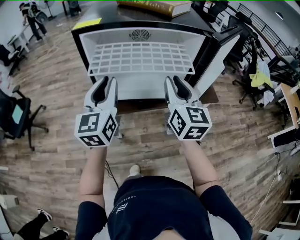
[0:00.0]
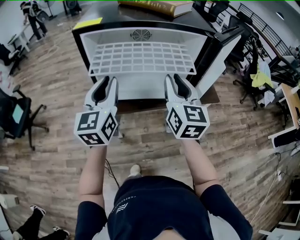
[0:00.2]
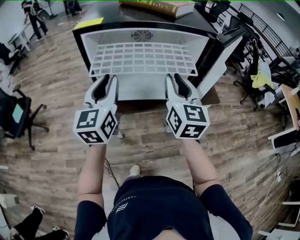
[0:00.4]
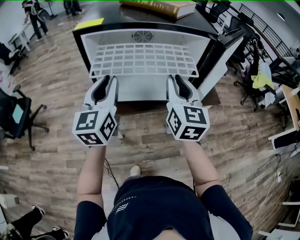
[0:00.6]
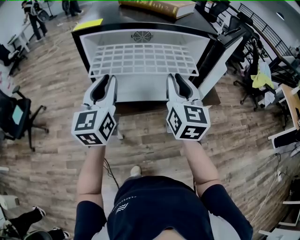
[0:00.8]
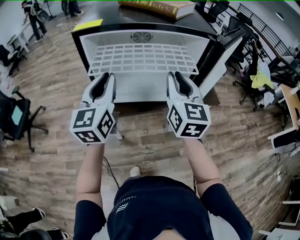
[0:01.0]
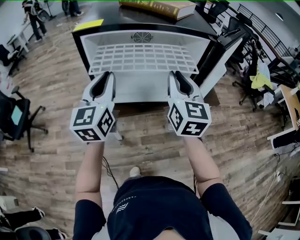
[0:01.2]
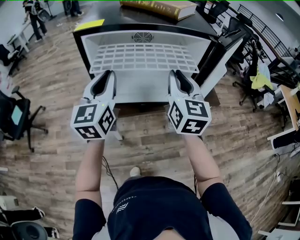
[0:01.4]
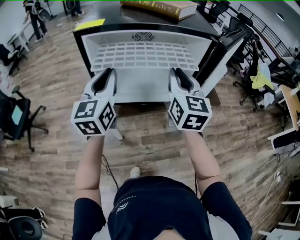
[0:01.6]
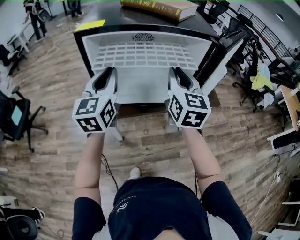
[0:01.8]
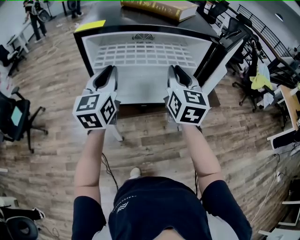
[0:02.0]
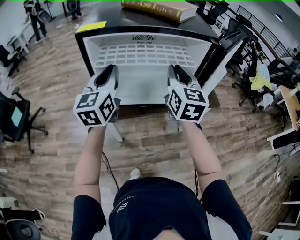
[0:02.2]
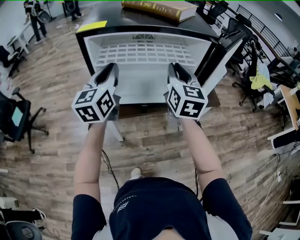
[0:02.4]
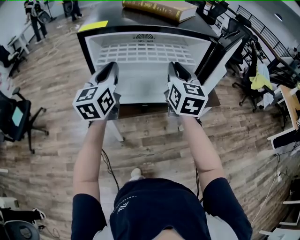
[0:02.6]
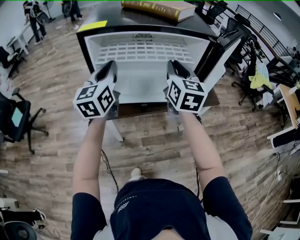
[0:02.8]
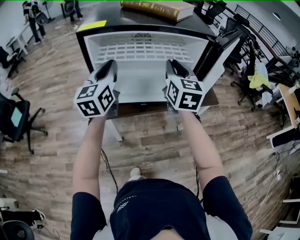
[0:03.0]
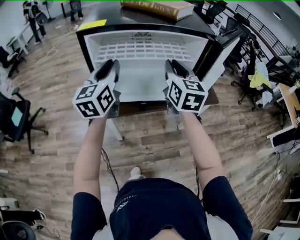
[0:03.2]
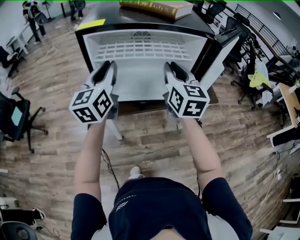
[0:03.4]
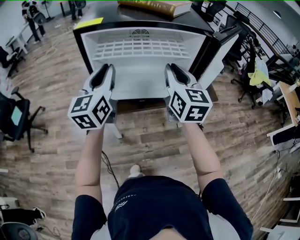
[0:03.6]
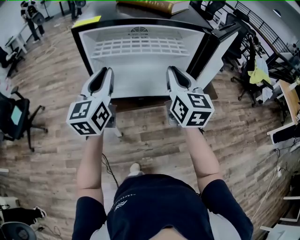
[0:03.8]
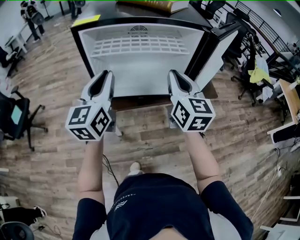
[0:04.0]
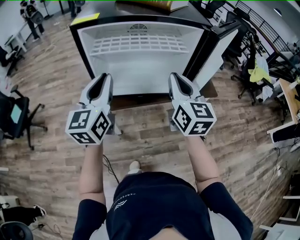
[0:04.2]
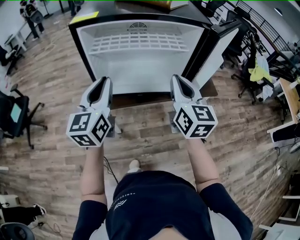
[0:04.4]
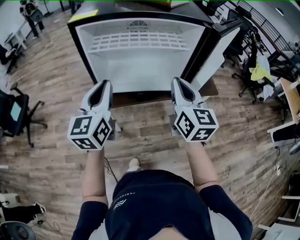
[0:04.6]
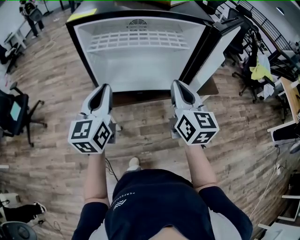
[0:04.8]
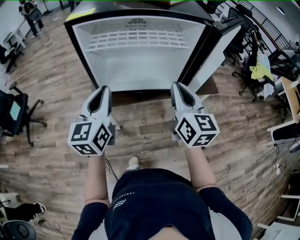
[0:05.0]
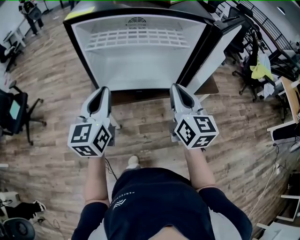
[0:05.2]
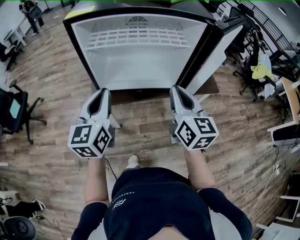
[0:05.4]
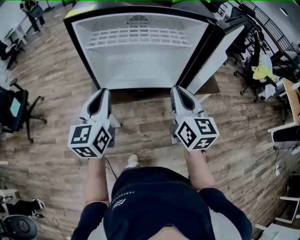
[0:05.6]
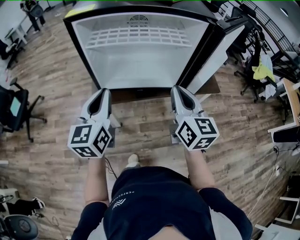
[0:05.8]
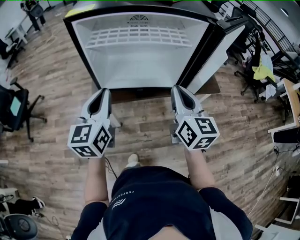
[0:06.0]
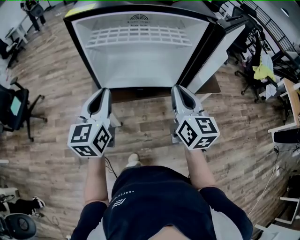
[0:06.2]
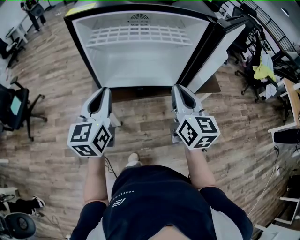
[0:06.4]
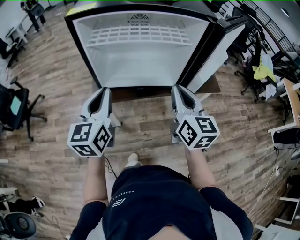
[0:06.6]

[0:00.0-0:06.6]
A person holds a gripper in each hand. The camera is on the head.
0:00.0 to 0:01.6: The grippers make only small movements.
0:01.6 to 0:03.2: The grippers stay close to where they were, moving slightly.
0:03.2 to 0:05.0: The right gripper goes roughly 10 cm backward. The left gripper goes roughly 15 cm backward and downward.
0:05.0 to 0:06.6: The grippers move only a little.

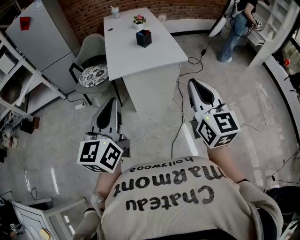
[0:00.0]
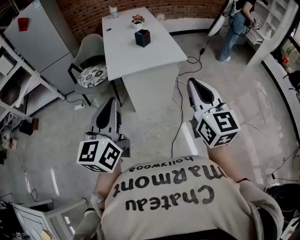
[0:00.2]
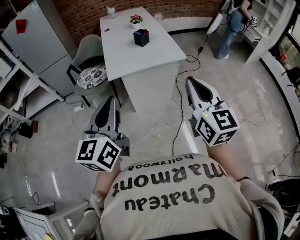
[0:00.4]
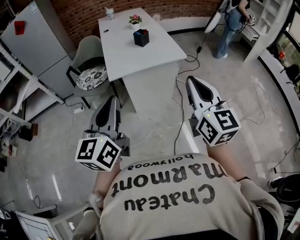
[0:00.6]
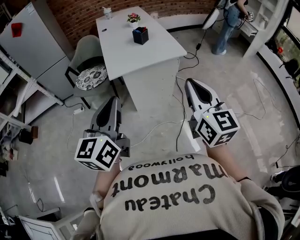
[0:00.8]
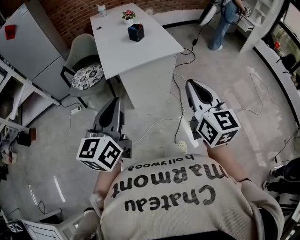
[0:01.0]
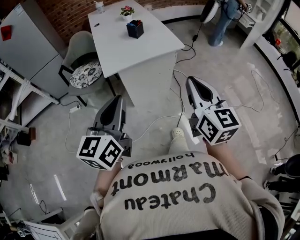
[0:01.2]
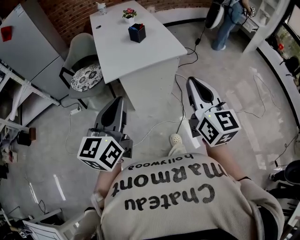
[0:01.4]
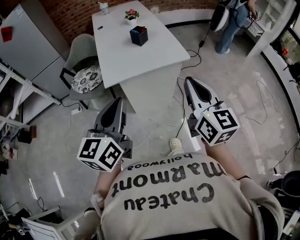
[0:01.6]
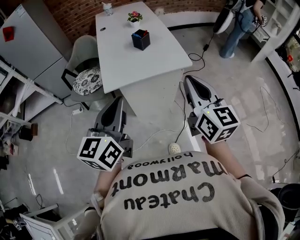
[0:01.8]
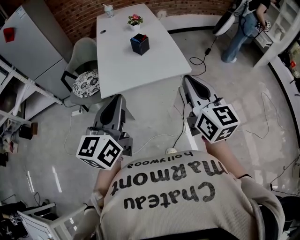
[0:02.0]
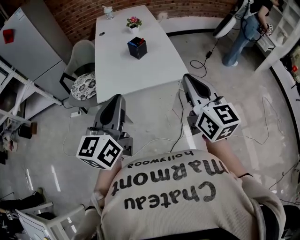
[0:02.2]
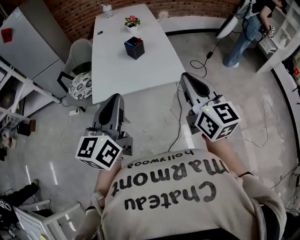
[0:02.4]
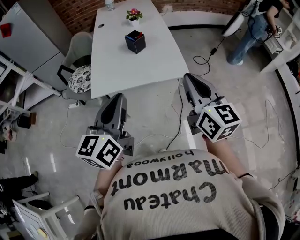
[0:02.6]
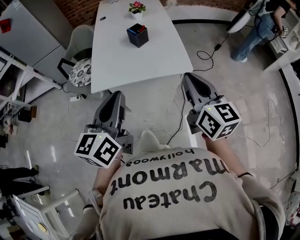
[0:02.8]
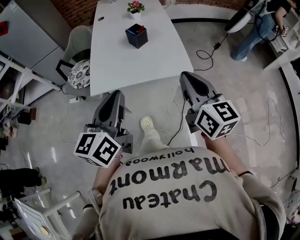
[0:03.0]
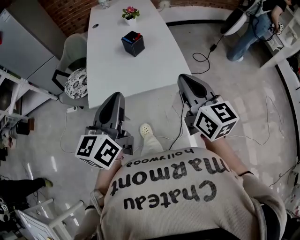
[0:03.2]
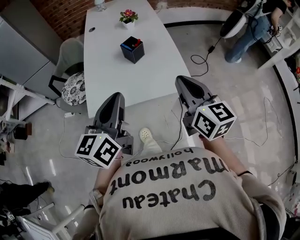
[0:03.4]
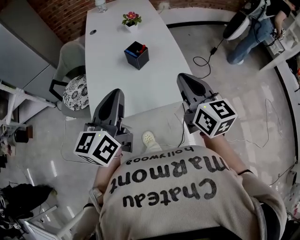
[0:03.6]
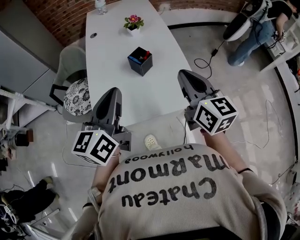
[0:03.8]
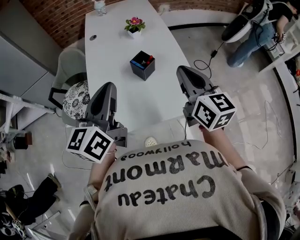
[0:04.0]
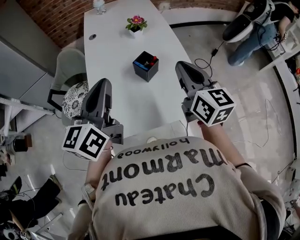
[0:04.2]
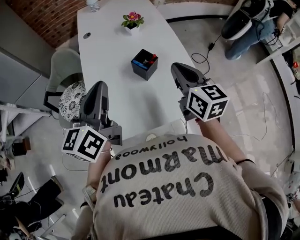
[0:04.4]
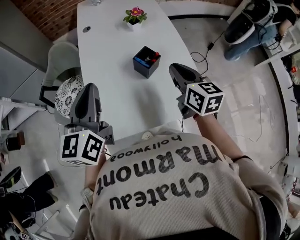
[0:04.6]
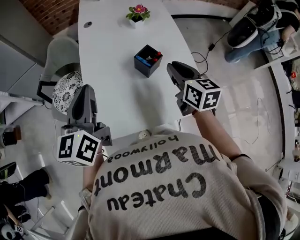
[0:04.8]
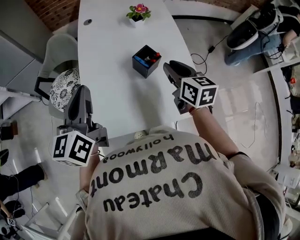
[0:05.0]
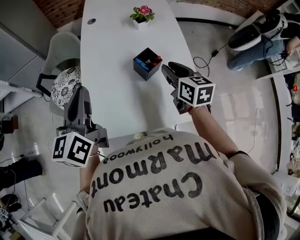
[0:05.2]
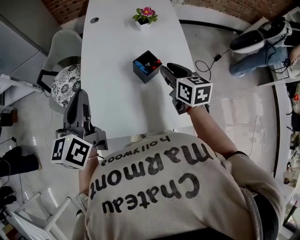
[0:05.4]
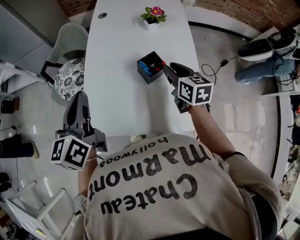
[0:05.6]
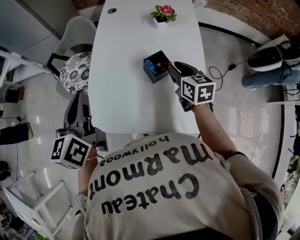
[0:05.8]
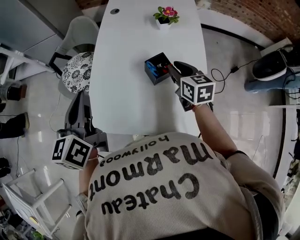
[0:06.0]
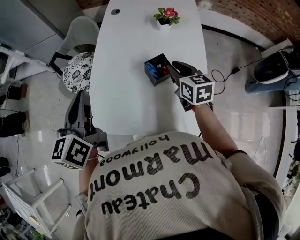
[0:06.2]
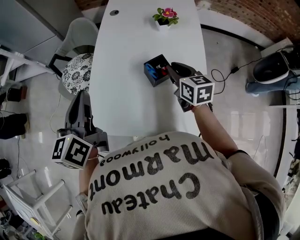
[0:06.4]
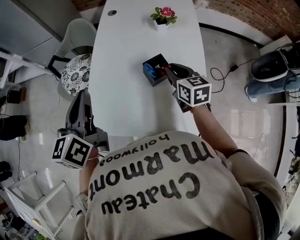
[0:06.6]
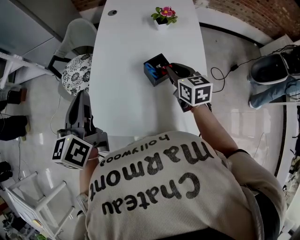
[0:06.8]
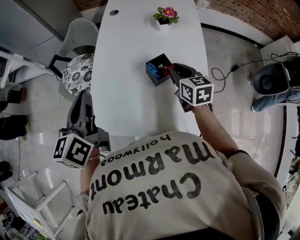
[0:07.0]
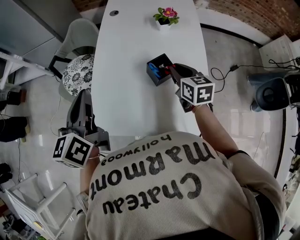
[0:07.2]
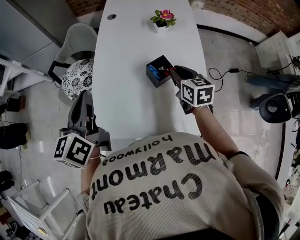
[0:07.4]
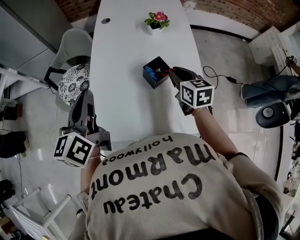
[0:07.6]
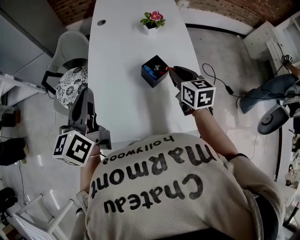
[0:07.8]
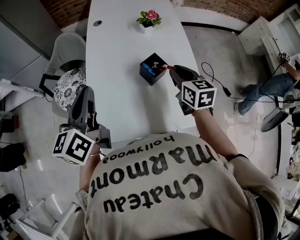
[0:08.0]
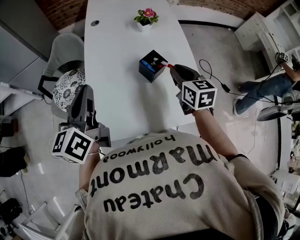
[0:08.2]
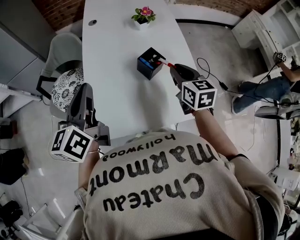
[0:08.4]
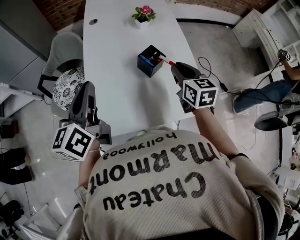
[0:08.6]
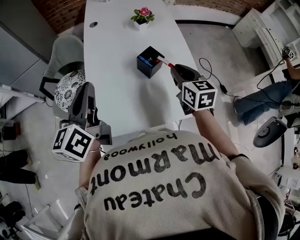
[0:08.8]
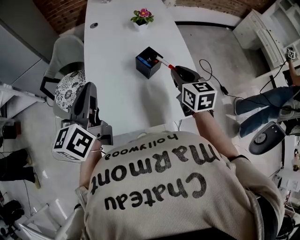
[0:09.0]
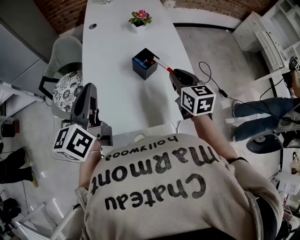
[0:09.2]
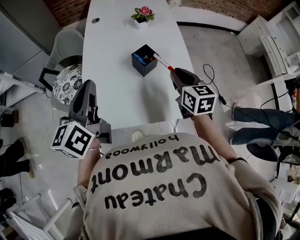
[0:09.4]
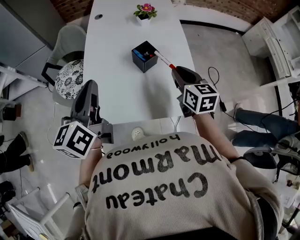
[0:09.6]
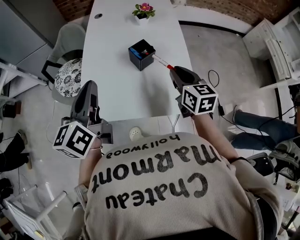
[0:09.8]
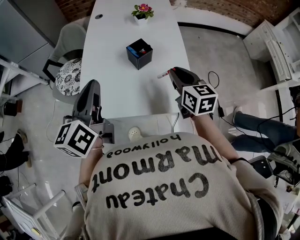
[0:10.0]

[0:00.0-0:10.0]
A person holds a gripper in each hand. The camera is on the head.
0:00.0 to 0:01.4: The two grippers go roughly 5 cm forward.
0:01.4 to 0:02.8: Both grippers travel together forward and to the right, about 25 cm.
0:02.8 to 0:04.2: The grippers both shift forward by roughly 30 cm.
0:04.2 to 0:05.8: The left gripper is displaced to the left and downward by some 10 cm, and changes its angle by approximately 30 degrees, while the right gripper travels downward and forward by about 25 cm, changes its angle by roughly 30 degrees, and opens.
0:05.8 to 0:07.2: There are only small adjustments of the grippers.
0:07.2 to 0:08.6: The right gripper heads backward and upward, covering approximately 10 cm.
0:08.6 to 0:10.0: The left gripper shifts roughly 15 cm to the right and backward. Meanwhile the right gripper is displaced backward and to the right by some 10 cm.

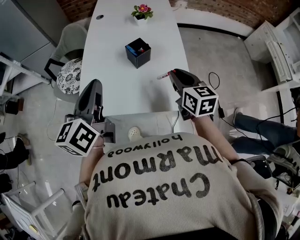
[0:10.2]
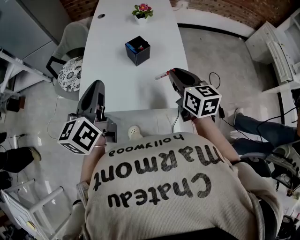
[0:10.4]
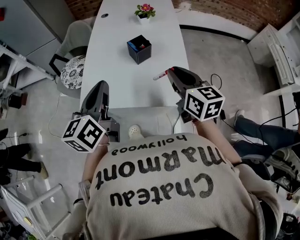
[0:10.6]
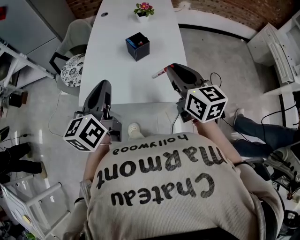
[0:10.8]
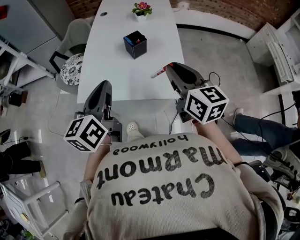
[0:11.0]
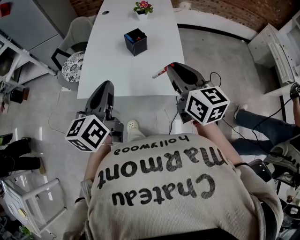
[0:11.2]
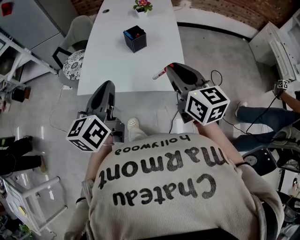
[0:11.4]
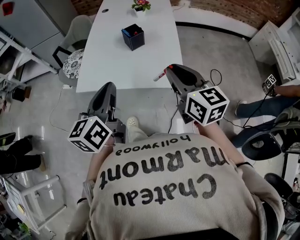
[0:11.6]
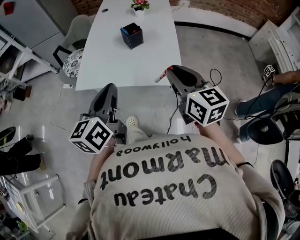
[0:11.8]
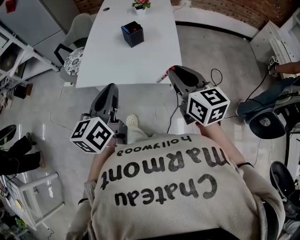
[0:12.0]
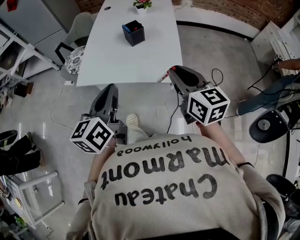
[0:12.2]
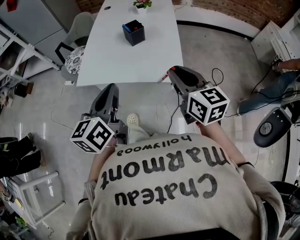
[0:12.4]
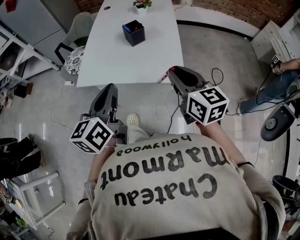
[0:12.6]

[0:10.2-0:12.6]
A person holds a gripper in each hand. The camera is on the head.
0:10.2 to 0:11.4: The left gripper goes approximately 15 cm backward and to the right, while the right gripper moves backward and upward, about 15 cm.
0:11.4 to 0:12.6: The right gripper moves some 5 cm, while the left gripper moves backward, about 5 cm.

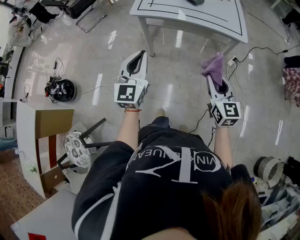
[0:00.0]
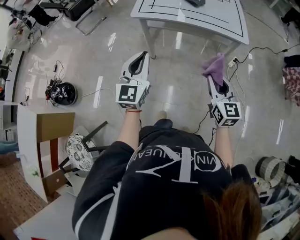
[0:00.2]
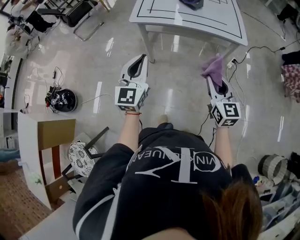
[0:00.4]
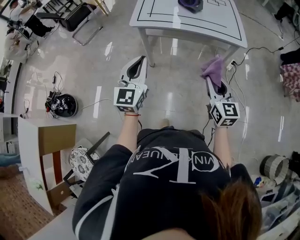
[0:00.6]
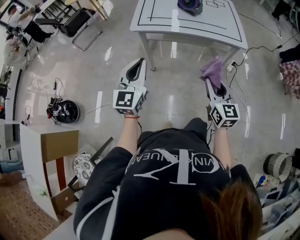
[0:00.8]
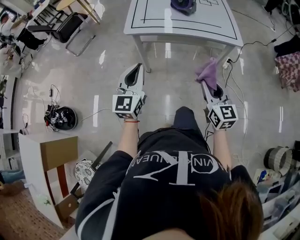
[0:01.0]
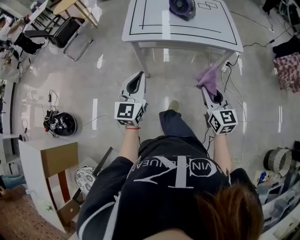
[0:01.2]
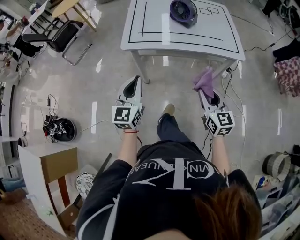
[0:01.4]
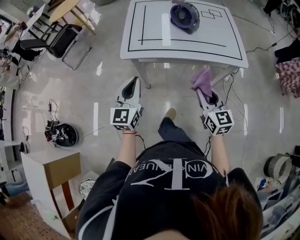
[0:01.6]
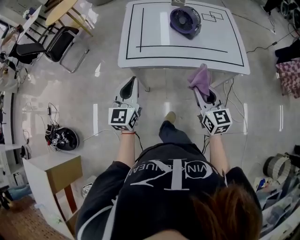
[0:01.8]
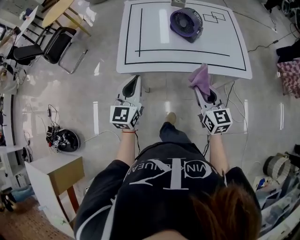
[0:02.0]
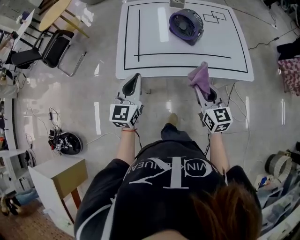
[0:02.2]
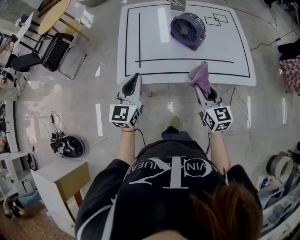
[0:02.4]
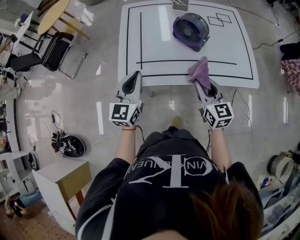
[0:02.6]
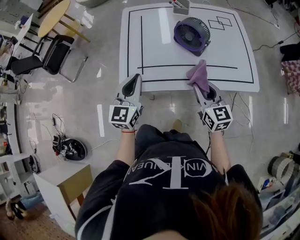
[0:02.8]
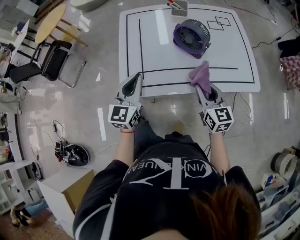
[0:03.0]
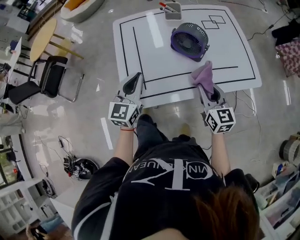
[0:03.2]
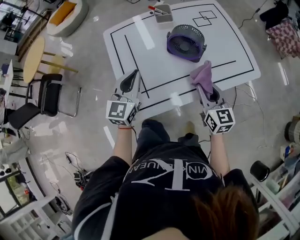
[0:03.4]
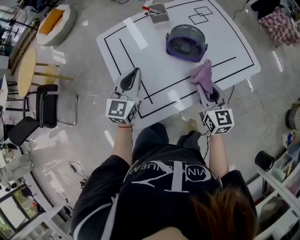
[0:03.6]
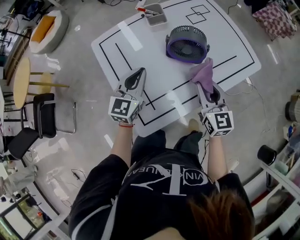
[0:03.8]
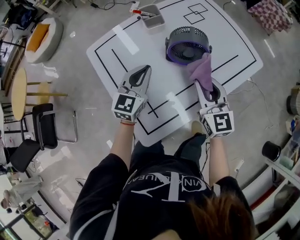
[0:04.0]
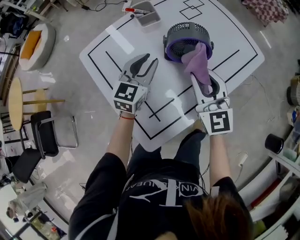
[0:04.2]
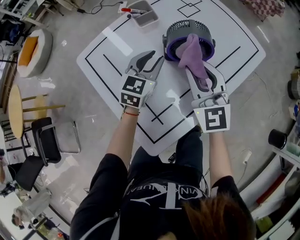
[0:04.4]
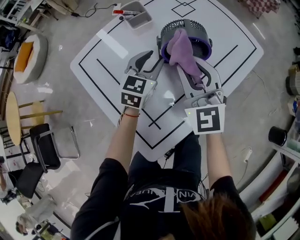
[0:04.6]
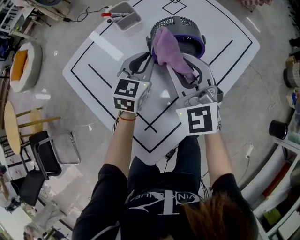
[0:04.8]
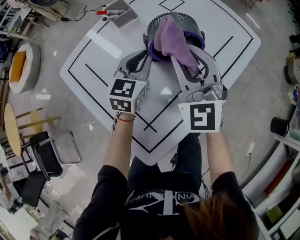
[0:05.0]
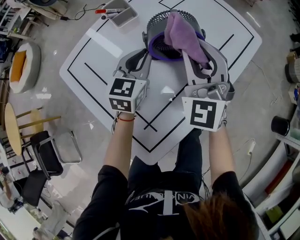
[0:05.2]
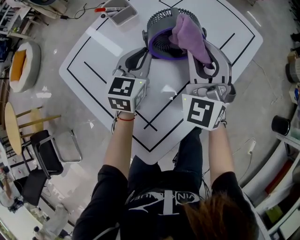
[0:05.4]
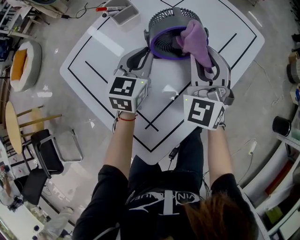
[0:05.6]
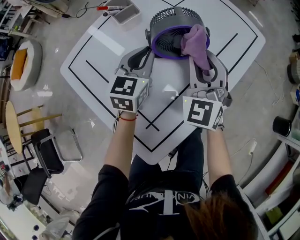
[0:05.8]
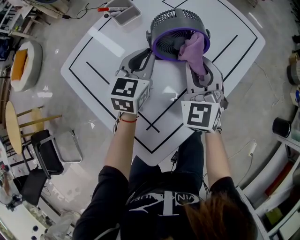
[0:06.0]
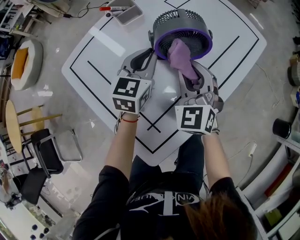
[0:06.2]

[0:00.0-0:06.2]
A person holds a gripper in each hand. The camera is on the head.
0:00.0 to 0:01.6: The grippers both shift forward by roughly 20 cm.
0:01.6 to 0:03.2: Both grippers move forward, about 30 cm.
0:03.2 to 0:04.6: The right gripper ends up approximately 15 cm from where it was, and rotates about 40 degrees; the left gripper shifts by approximately 25 cm, turns by roughly 40 degrees, and opens up.
0:04.6 to 0:06.2: The right gripper moves downward, some 10 cm; the left gripper closes its fingers.
